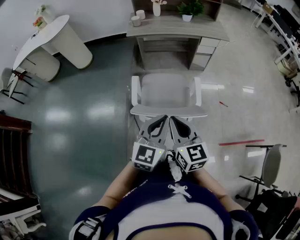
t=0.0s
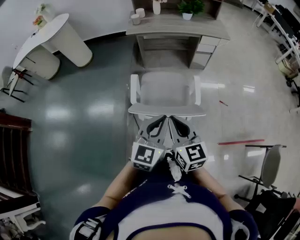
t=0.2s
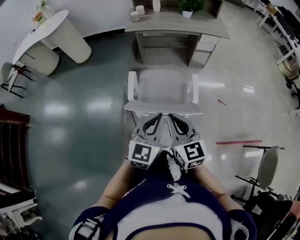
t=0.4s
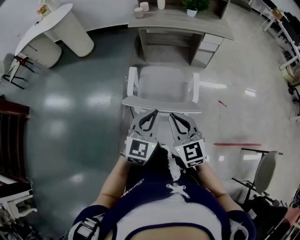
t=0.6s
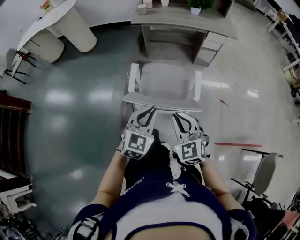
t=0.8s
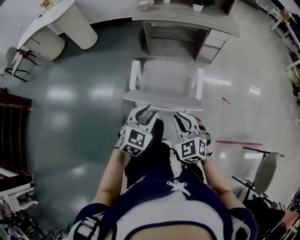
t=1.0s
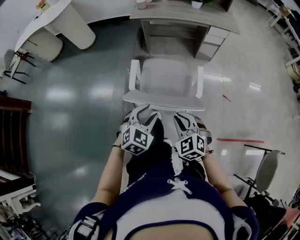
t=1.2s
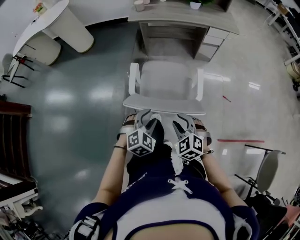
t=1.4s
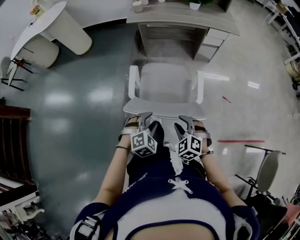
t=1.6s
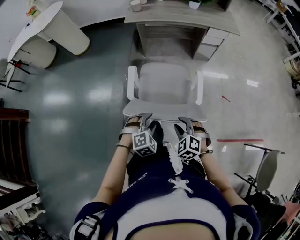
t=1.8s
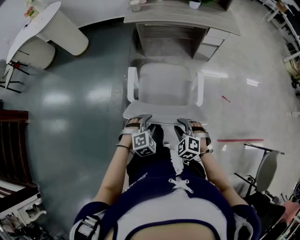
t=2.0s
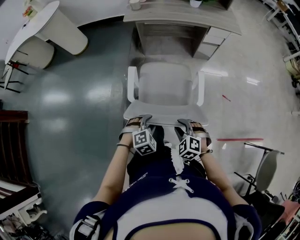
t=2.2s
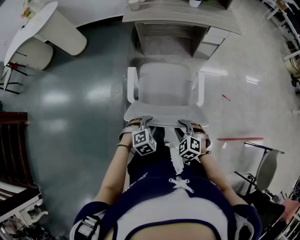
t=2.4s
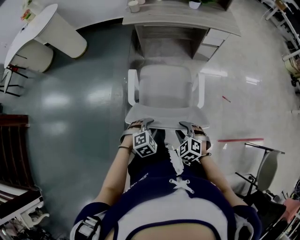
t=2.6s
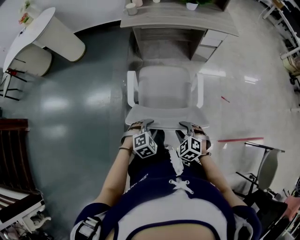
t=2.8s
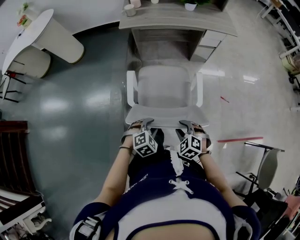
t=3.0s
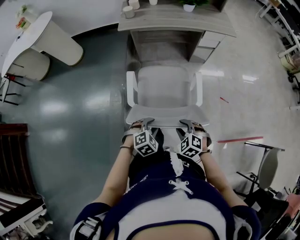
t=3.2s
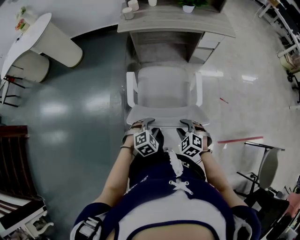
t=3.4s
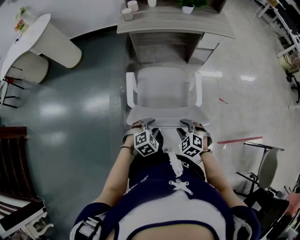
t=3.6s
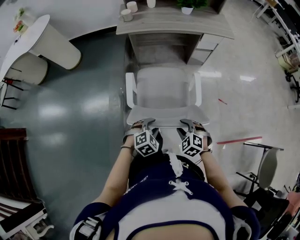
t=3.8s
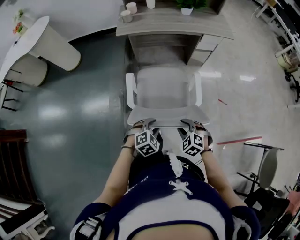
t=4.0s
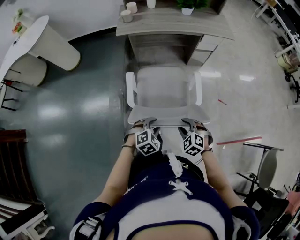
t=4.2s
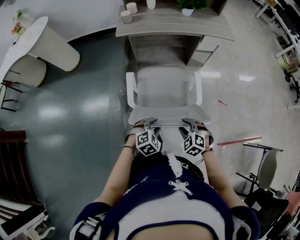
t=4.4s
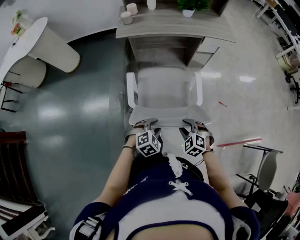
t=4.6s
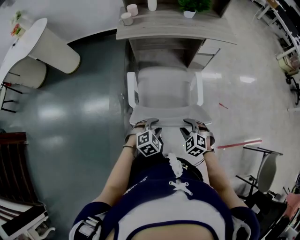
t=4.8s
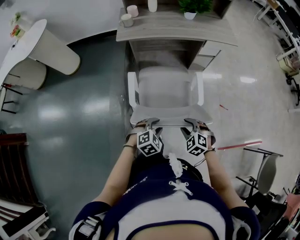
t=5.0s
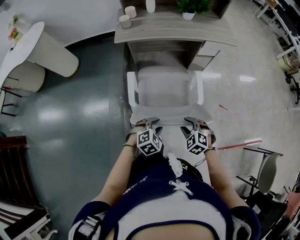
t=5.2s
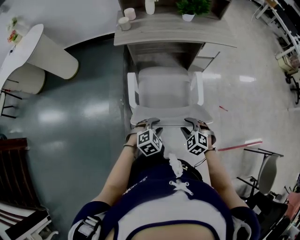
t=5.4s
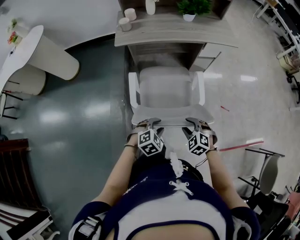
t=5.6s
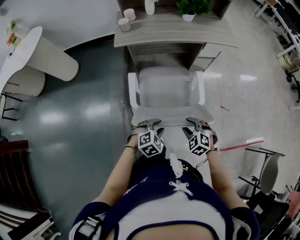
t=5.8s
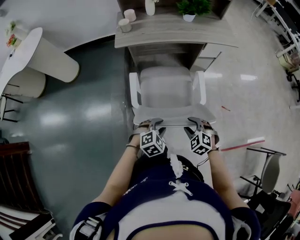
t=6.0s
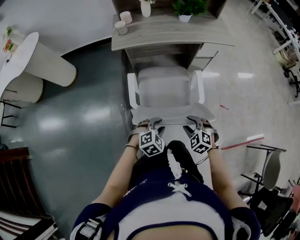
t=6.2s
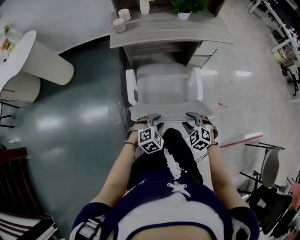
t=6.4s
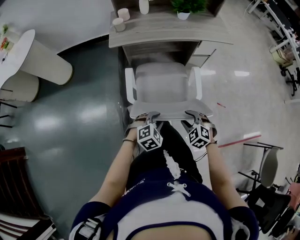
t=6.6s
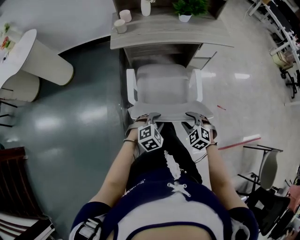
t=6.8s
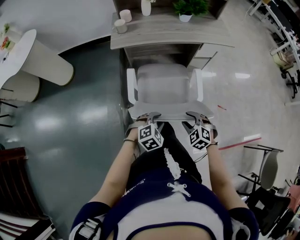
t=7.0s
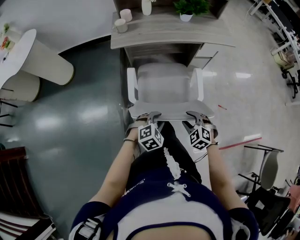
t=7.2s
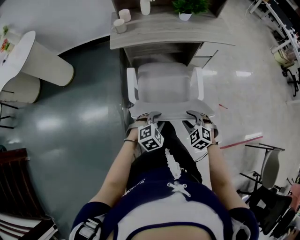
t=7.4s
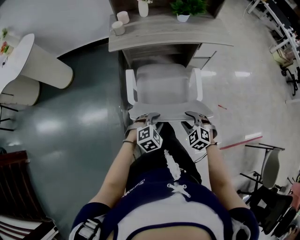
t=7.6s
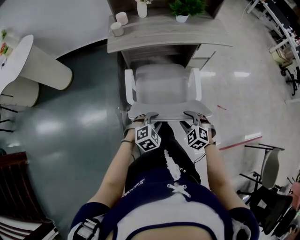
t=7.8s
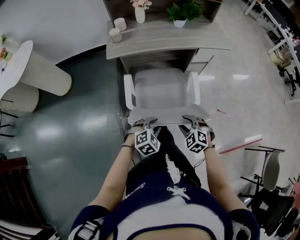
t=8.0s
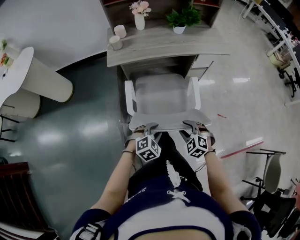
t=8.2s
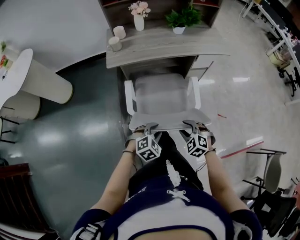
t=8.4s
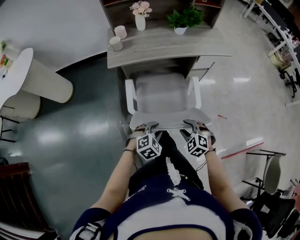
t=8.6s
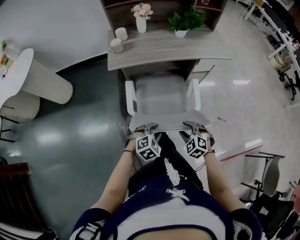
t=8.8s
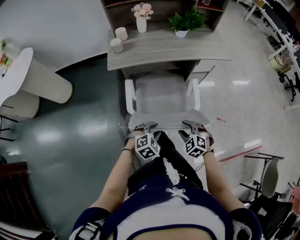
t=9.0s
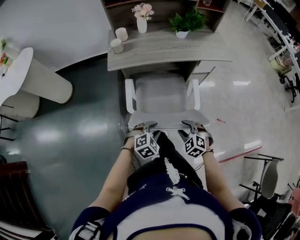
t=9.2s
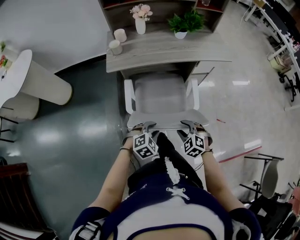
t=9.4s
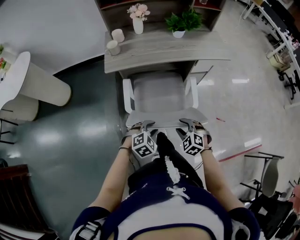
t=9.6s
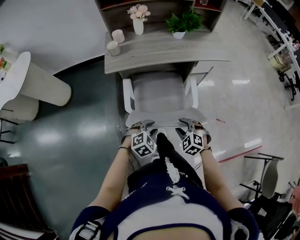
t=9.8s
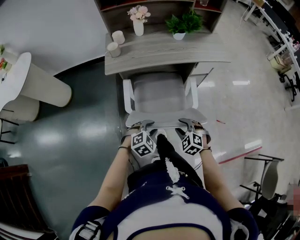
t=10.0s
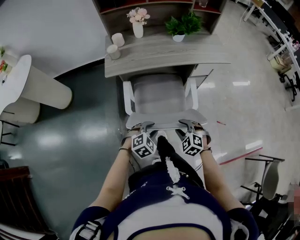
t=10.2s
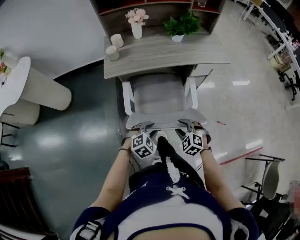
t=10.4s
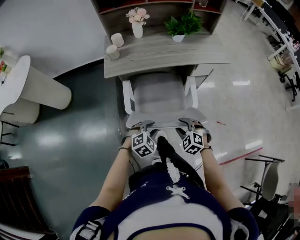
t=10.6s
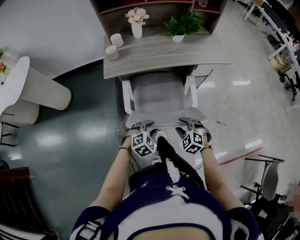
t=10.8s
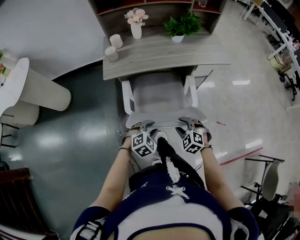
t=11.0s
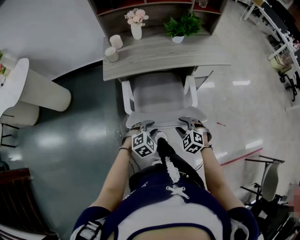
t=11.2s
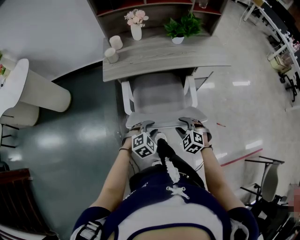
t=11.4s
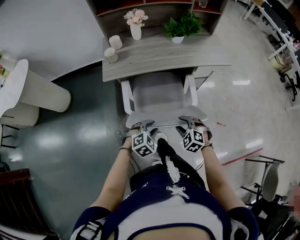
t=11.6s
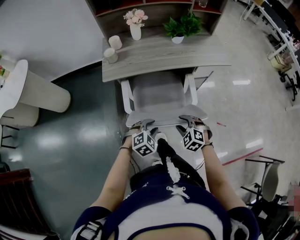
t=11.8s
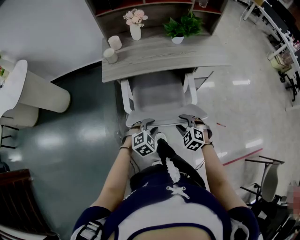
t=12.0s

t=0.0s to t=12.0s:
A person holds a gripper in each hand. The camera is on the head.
t=0.0s to t=1.6s: The grippers both shift downward by roughly 20 cm. The left gripper points its fingers roughly 40 degrees further downward, and opens up; the right gripper tips its fingers downward by roughly 40 degrees, and opens up.
t=1.6s to t=3.0s: Both grippers move forward and downward, approximately 5 cm.
t=3.0s to t=4.4s: Both grippers travel together forward, some 5 cm.
t=4.4s to t=6.0s: The grippers both shift forward by some 10 cm.
t=6.0s to t=7.6s: The left gripper changes place by roughly 5 cm.
t=7.6s to t=9.0s: The two grippers go approximately 5 cm forward.
t=9.0s to t=10.4s: The grippers stay close to where they were, moving slightly.
t=10.4s to t=12.0s: The grippers both shift forward by roughly 5 cm.

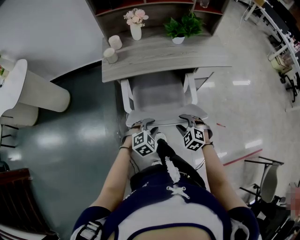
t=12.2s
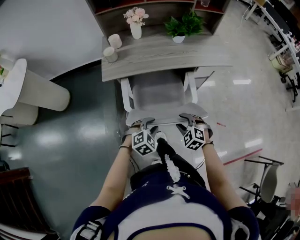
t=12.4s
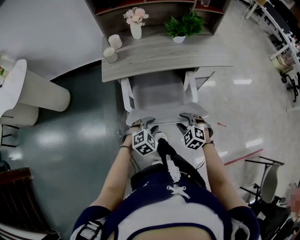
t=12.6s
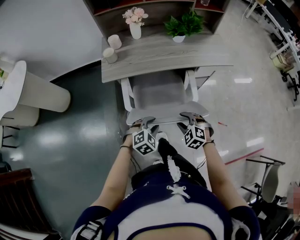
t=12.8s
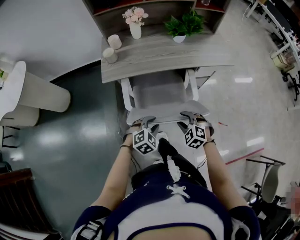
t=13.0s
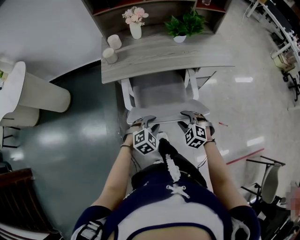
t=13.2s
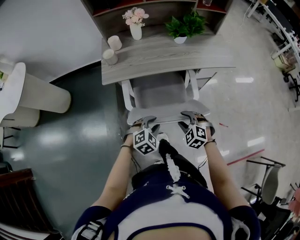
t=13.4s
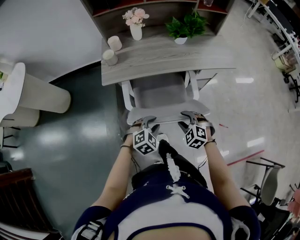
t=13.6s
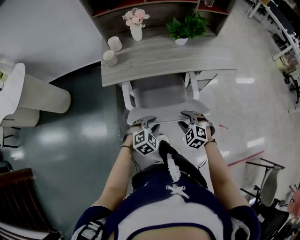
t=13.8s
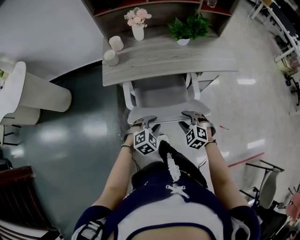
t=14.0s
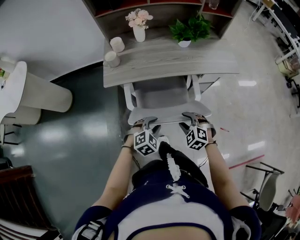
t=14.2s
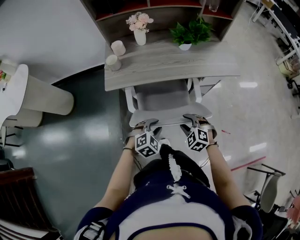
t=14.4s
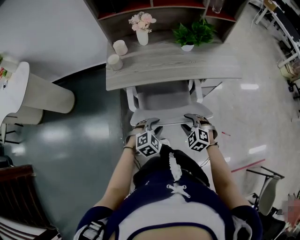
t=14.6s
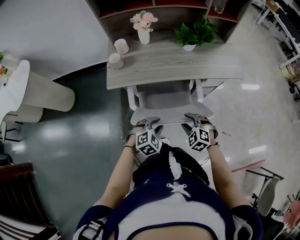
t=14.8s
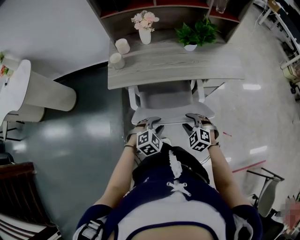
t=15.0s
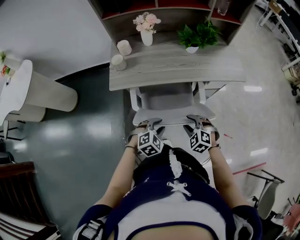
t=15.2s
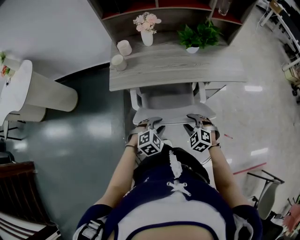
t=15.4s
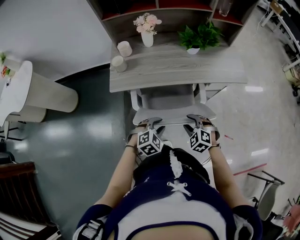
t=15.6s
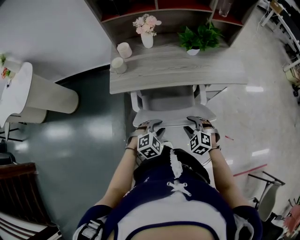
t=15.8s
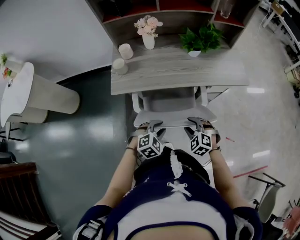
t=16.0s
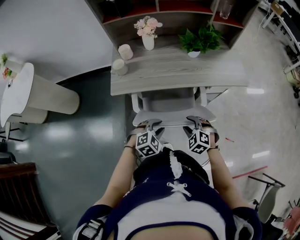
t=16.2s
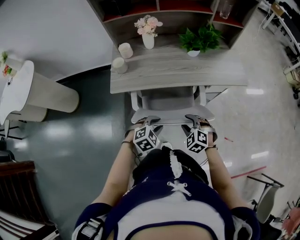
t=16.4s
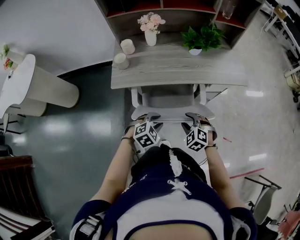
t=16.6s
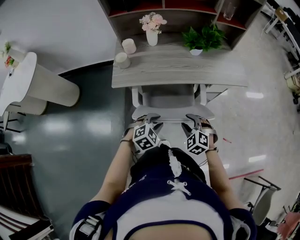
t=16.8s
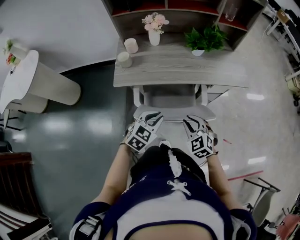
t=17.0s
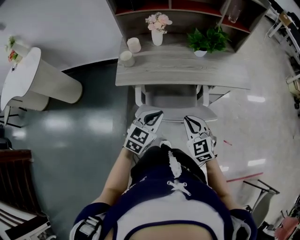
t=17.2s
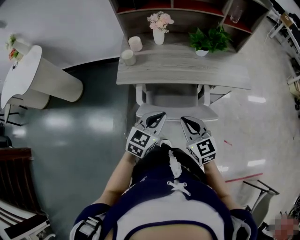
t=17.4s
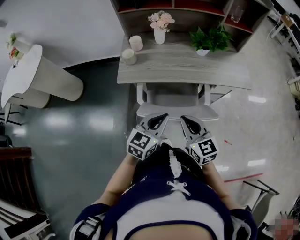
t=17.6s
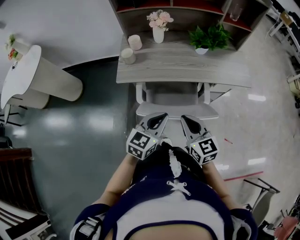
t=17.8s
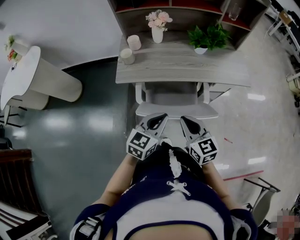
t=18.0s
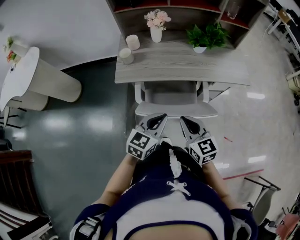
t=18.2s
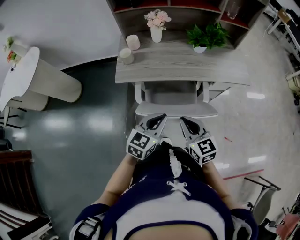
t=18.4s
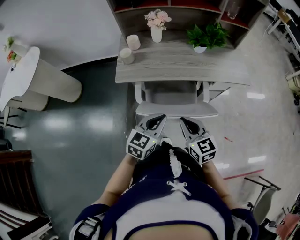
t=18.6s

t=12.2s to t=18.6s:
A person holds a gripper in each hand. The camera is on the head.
t=12.2s to t=13.8s: The grippers both shift forward by about 5 cm.
t=13.8s to t=15.4s: The right gripper moves forward, approximately 5 cm.
t=15.4s to t=17.0s: The grippers both shift upward by about 5 cm. The left gripper changes its angle by some 20 degrees.
t=17.0s to t=18.6s: The right gripper is displaced upward by approximately 5 cm, rotates about 40 degrees, and closes. The left gripper moves some 5 cm, and changes its angle by about 20 degrees.

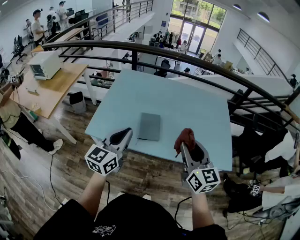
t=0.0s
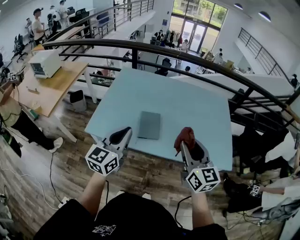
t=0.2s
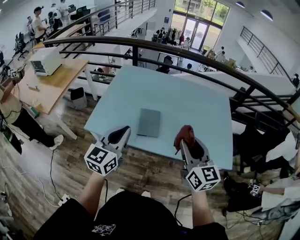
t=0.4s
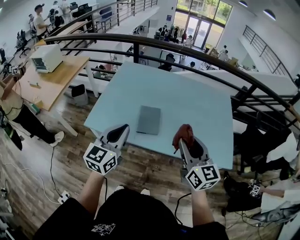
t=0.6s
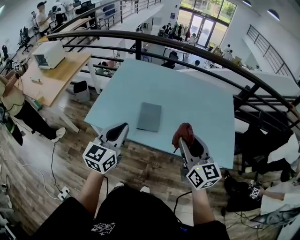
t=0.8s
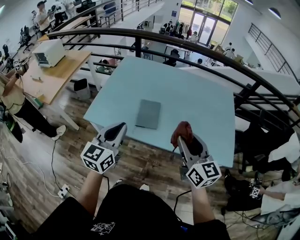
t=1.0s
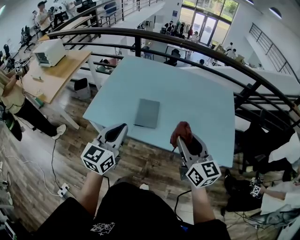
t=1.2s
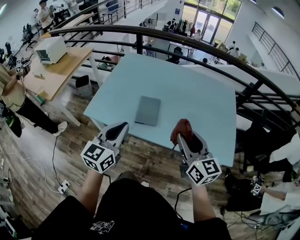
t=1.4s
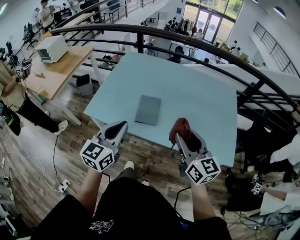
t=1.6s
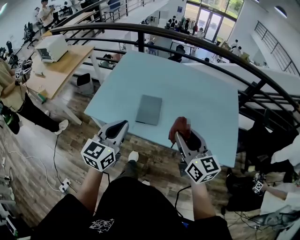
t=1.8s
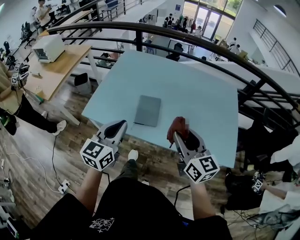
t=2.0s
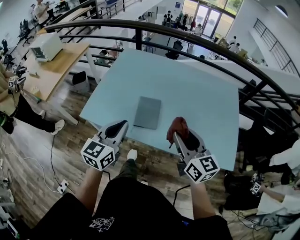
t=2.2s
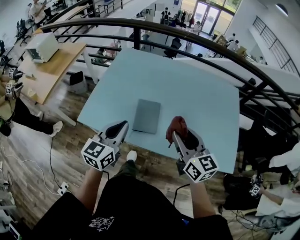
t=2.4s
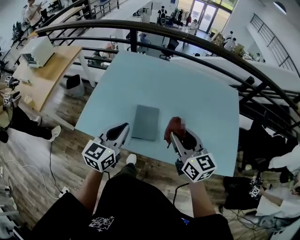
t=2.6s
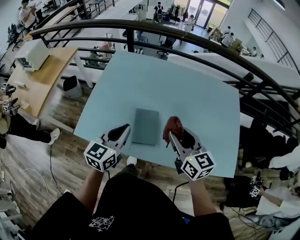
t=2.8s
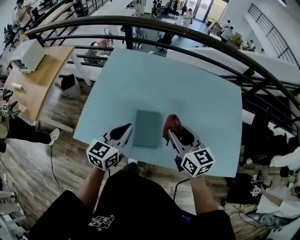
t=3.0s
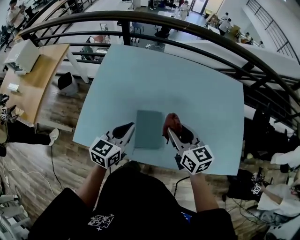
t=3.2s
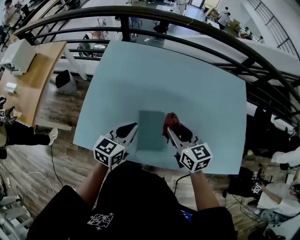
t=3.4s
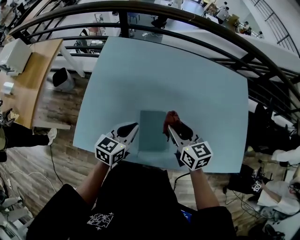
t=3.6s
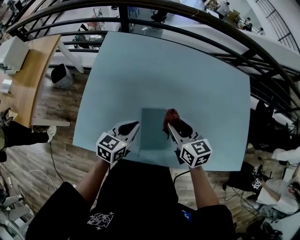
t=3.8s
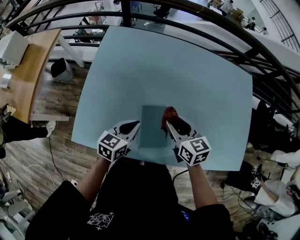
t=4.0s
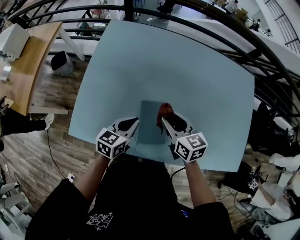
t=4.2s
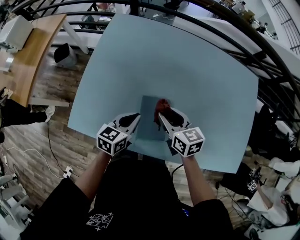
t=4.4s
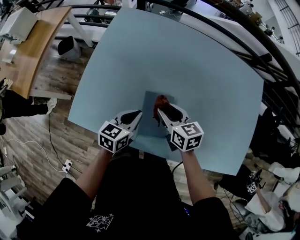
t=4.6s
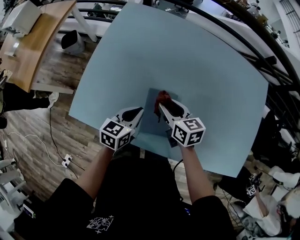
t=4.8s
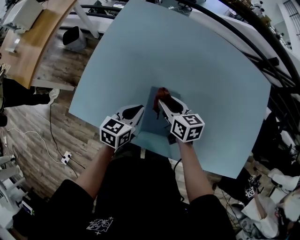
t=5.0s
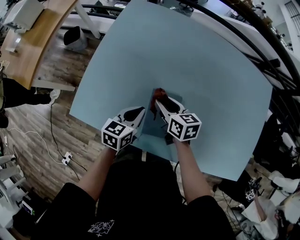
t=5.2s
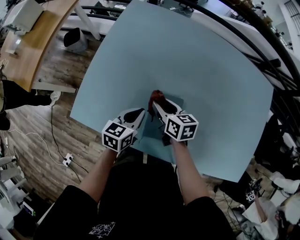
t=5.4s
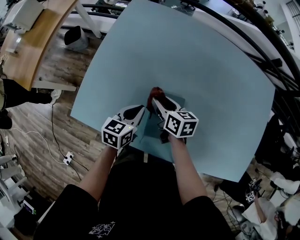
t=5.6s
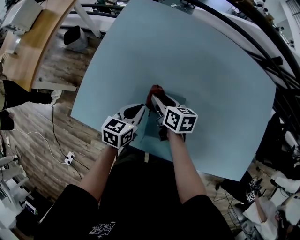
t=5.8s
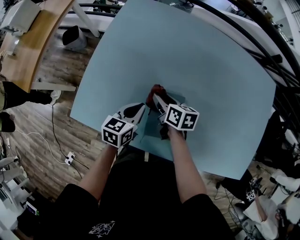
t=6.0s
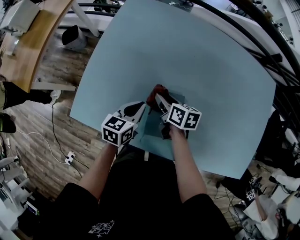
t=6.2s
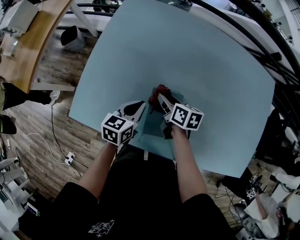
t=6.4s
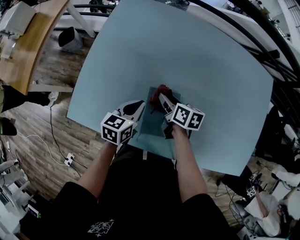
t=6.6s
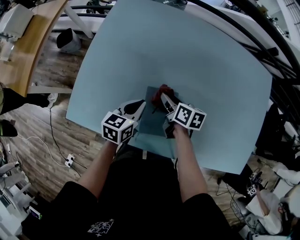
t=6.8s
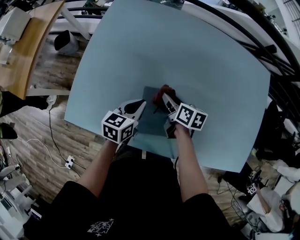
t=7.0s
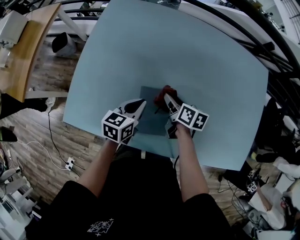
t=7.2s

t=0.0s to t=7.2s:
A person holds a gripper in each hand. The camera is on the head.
t=0.0s to t=1.4s: The left gripper changes place by approximately 5 cm, while the right gripper moves some 5 cm.
t=1.4s to t=2.8s: Both grippers move forward, approximately 20 cm.
t=2.8s to t=4.4s: The left gripper heads downward and forward, covering approximately 20 cm, and swivels about 20 degrees. Meanwhile the right gripper is displaced downward, forward and to the left by about 25 cm, and turns by about 20 degrees.
t=4.4s to t=5.8s: The left gripper moves downward, some 5 cm; the right gripper heads downward, to the left and forward, covering approximately 15 cm, and turns by approximately 20 degrees.
t=5.8s to t=7.2s: The left gripper travels to the right by some 5 cm, while the right gripper goes about 10 cm to the right.
